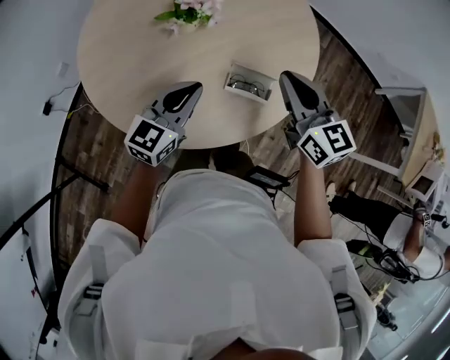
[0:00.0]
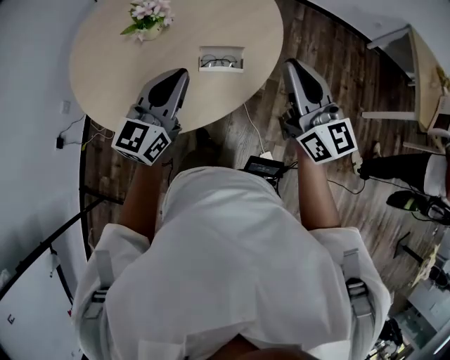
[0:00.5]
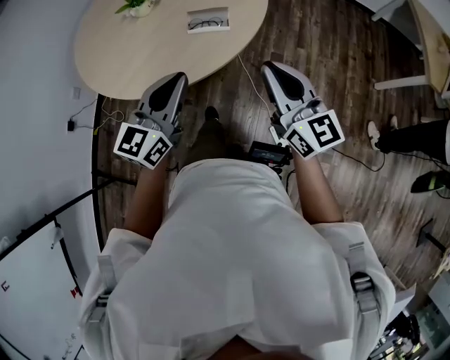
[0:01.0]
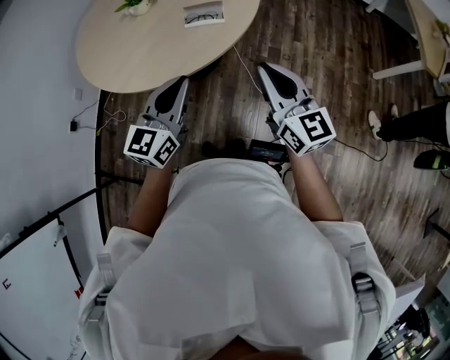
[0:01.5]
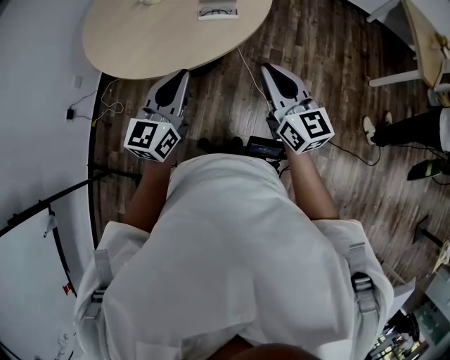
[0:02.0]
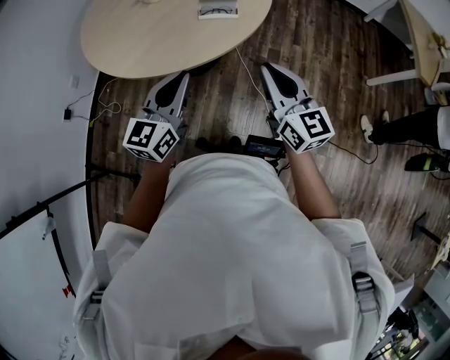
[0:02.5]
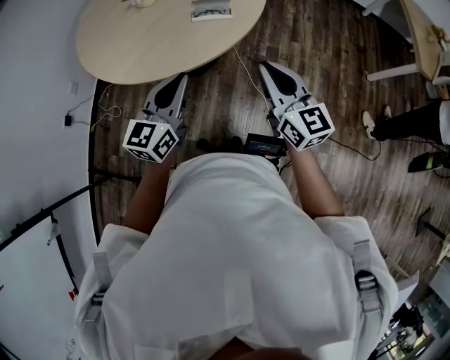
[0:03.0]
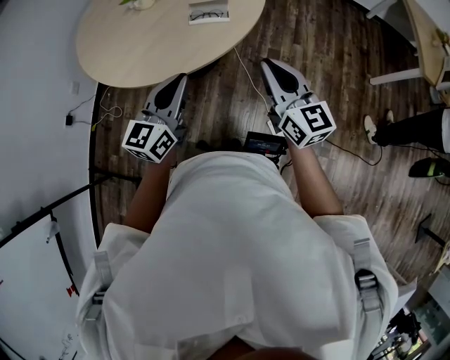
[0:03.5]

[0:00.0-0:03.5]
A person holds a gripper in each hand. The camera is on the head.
0:00.0 to 0:02.0: The two grippers go about 35 cm backward. The right gripper swivels some 20 degrees.
0:02.0 to 0:03.5: The right gripper goes roughly 5 cm to the right; the left gripper ends up about 5 cm from where it was.

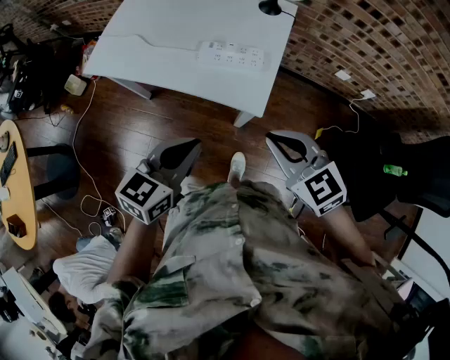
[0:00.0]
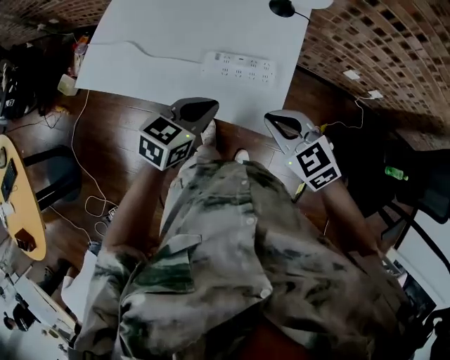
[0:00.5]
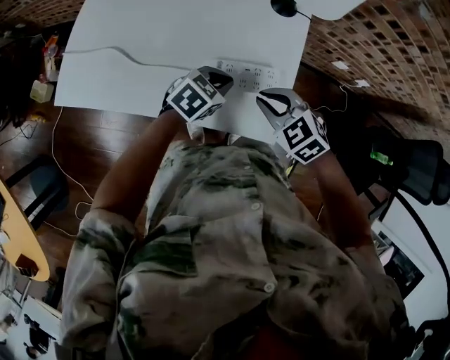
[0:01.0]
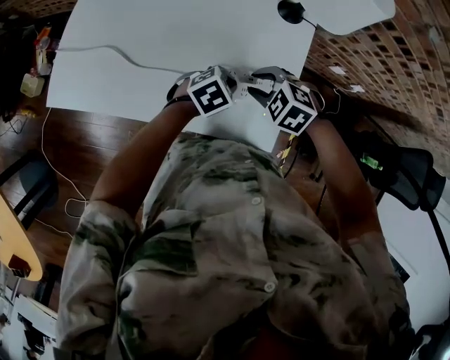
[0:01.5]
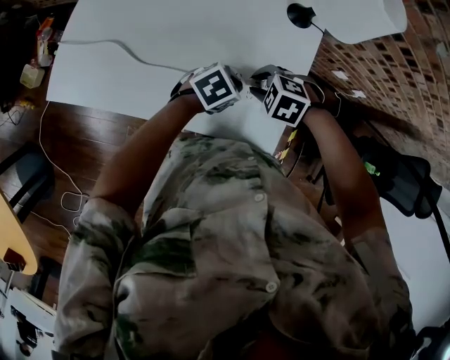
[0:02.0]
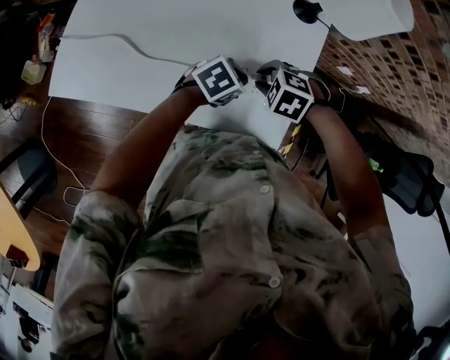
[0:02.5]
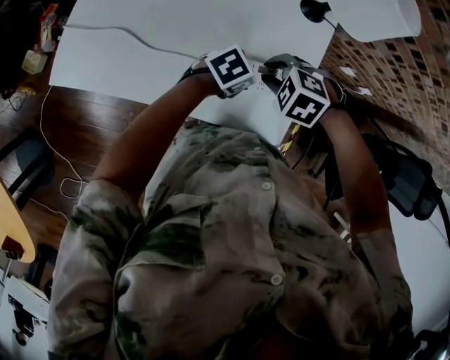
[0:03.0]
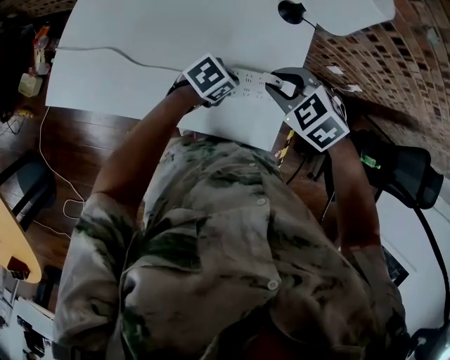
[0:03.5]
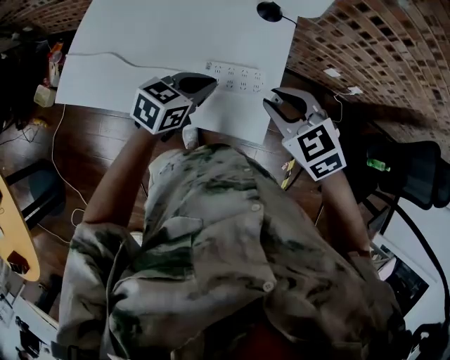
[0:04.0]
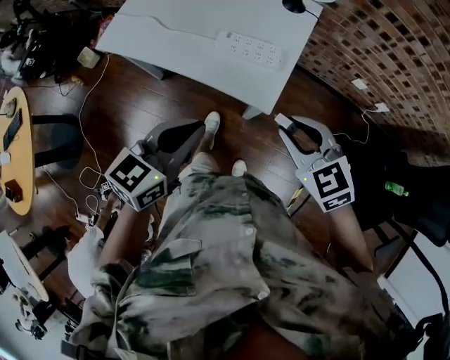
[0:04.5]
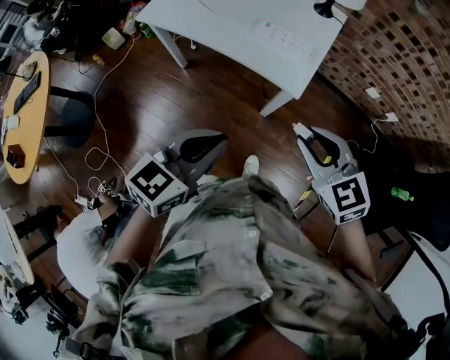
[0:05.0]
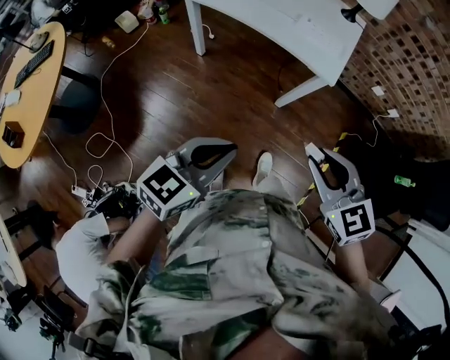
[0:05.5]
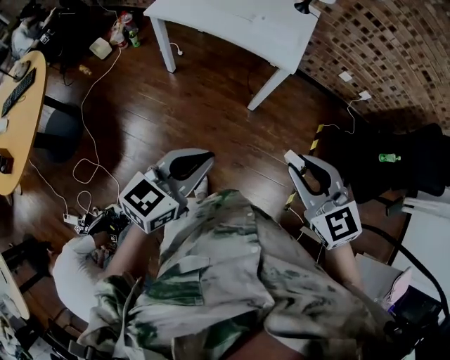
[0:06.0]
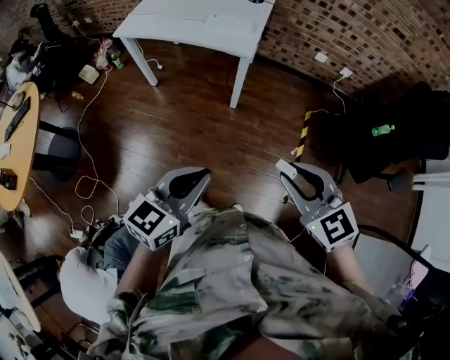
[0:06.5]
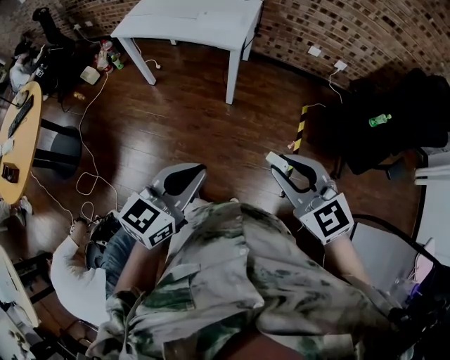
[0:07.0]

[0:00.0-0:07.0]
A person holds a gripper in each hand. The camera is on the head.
0:00.0 to 0:02.0: The left gripper changes place by roughly 40 cm, and swivels about 50 degrees, while the right gripper changes place by approximately 35 cm, angles its fingers downward, by approximately 50 degrees, and opens up.
0:02.0 to 0:03.5: The right gripper shifts about 10 cm upward, and turns by about 20 degrees.
0:03.5 to 0:05.0: The right gripper ends up approximately 40 cm from where it was, and angles its fingers upward, by some 40 degrees; the left gripper moves some 50 cm, and turns by roughly 50 degrees.
0:05.0 to 0:07.0: Both grippers travel together backward, some 40 cm.

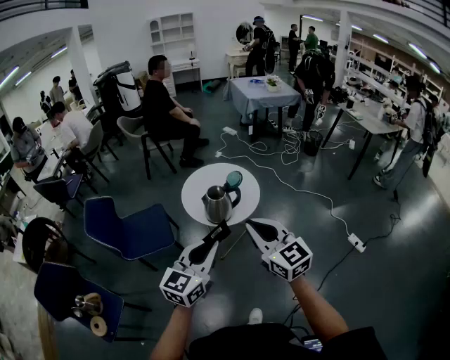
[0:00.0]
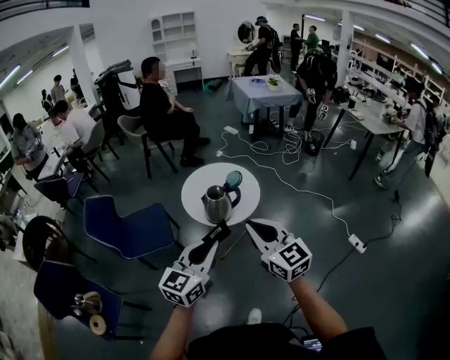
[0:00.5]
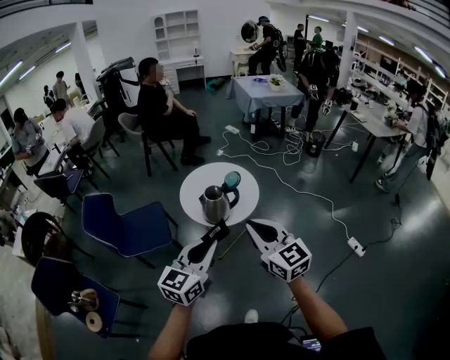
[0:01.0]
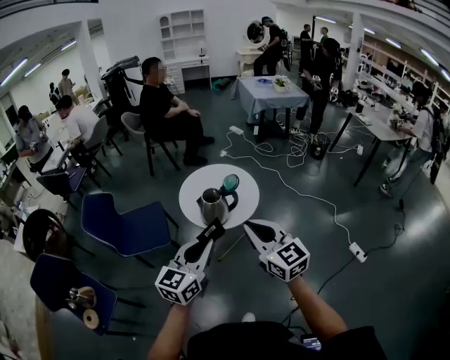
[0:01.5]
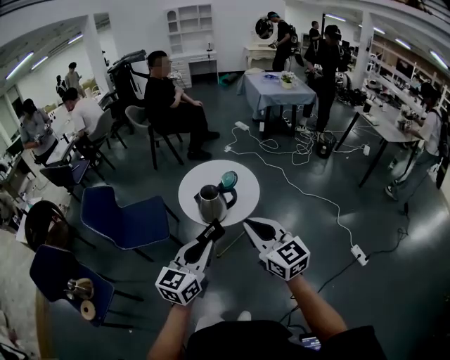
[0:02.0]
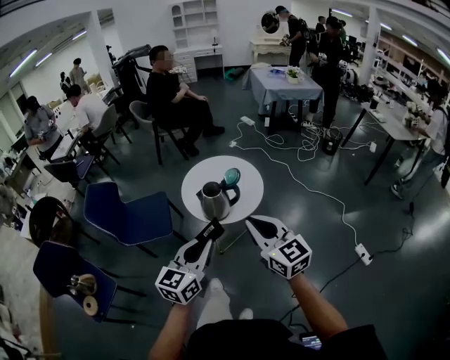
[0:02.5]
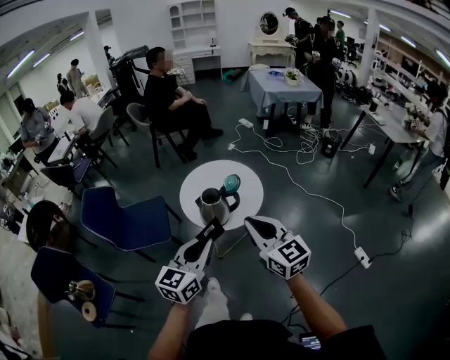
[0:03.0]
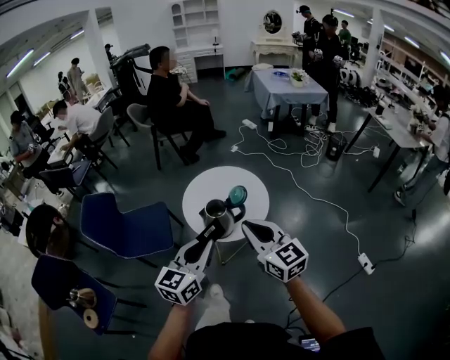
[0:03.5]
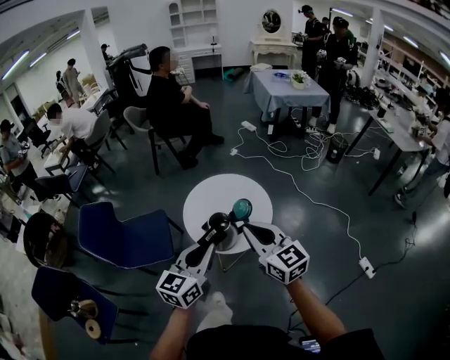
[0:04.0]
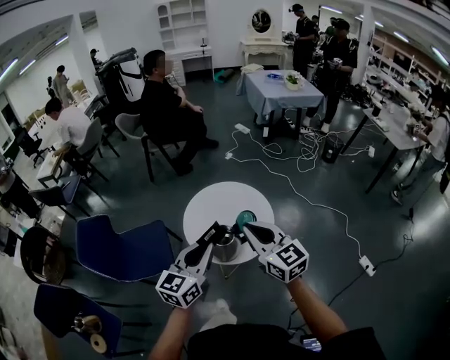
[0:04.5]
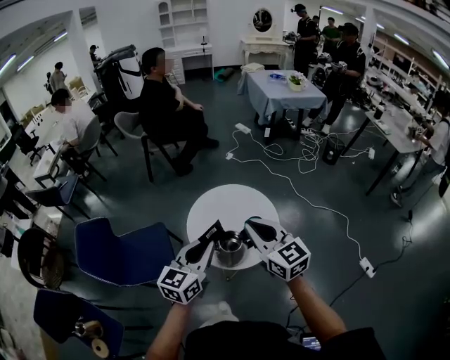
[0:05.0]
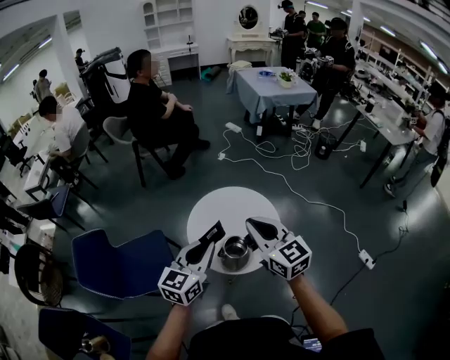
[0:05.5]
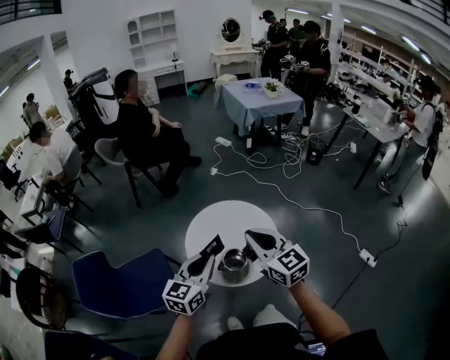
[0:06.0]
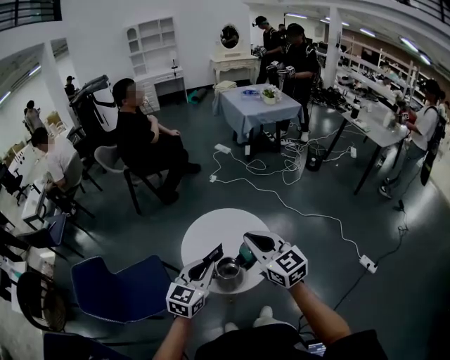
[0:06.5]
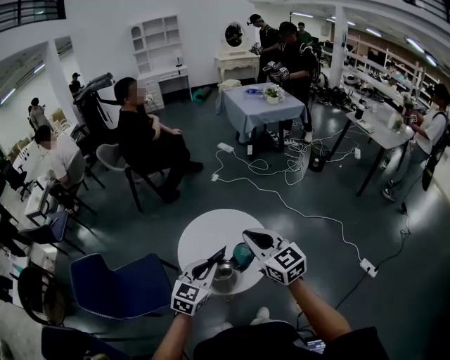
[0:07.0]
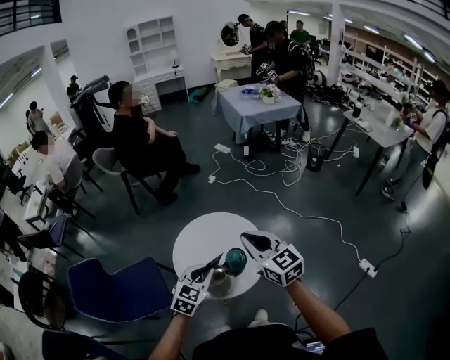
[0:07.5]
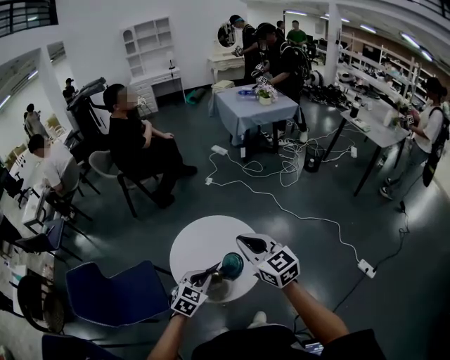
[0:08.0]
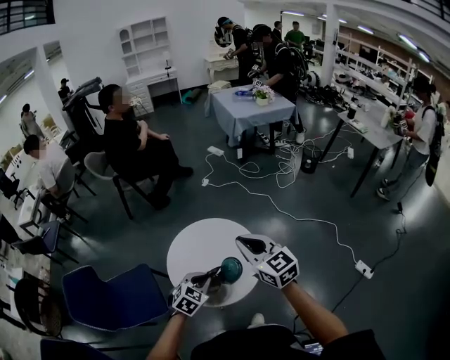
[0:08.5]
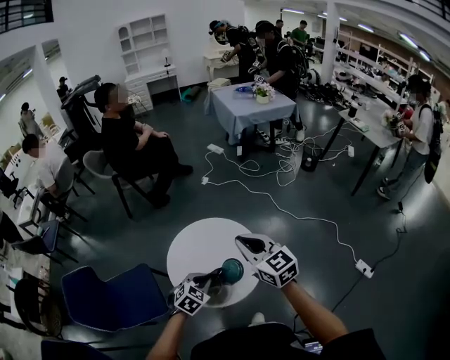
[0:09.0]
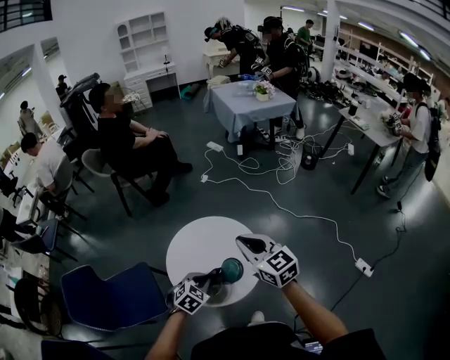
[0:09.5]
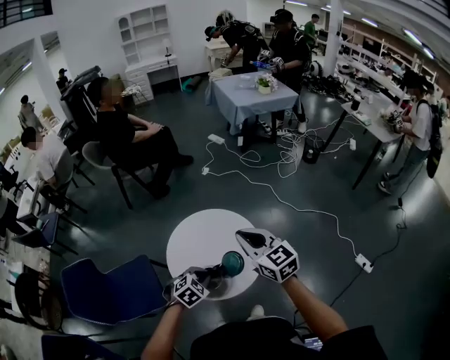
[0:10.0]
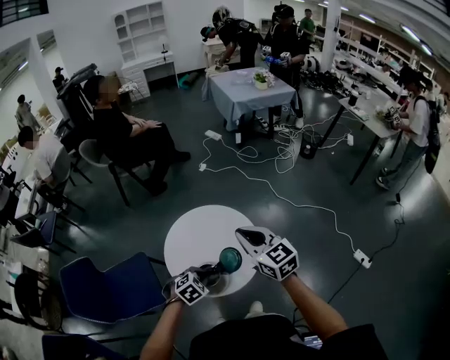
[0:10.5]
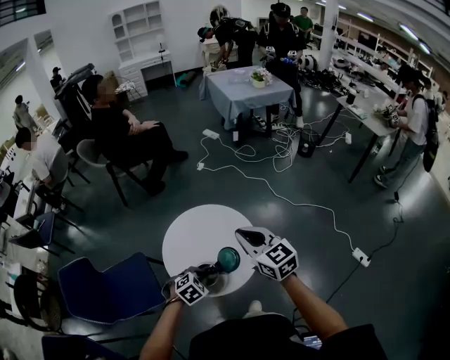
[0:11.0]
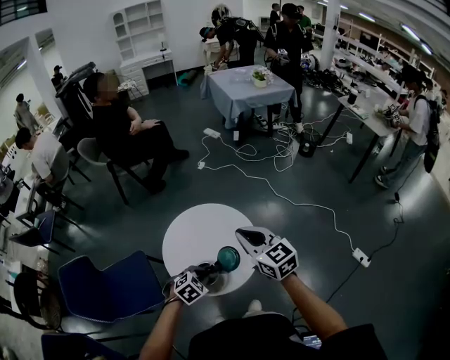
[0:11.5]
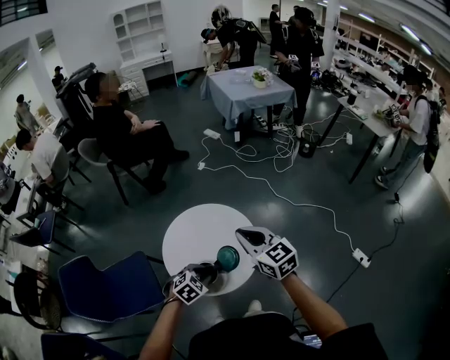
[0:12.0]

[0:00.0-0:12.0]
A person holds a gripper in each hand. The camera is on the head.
0:00.0 to 0:02.0: The two grippers go about 10 cm to the right and forward.
0:02.0 to 0:04.0: Both grippers move forward, roughly 25 cm.
0:04.0 to 0:06.0: Both grippers travel together forward and to the left, approximately 20 cm.
0:06.0 to 0:08.0: The right gripper goes about 15 cm to the right and forward, while the left gripper travels downward and to the right by about 15 cm, and swivels approximately 40 degrees.
0:08.0 to 0:10.0: The right gripper changes place by about 5 cm. The left gripper heads downward, covering about 5 cm, and rotates roughly 20 degrees.
0:10.0 to 0:12.0: The grippers stay close to where they were, moving slightly.

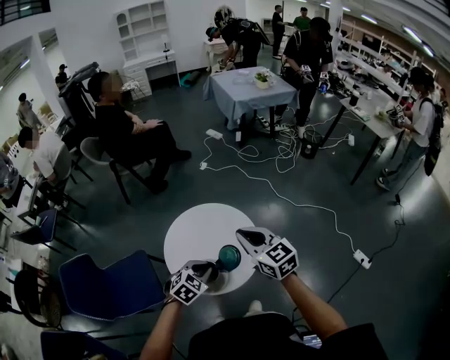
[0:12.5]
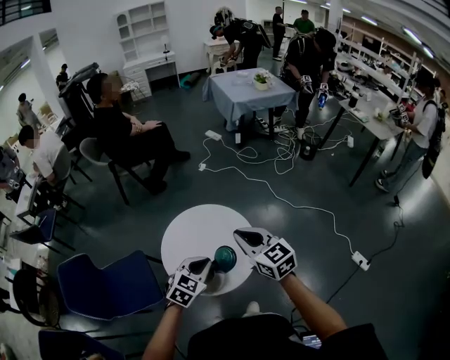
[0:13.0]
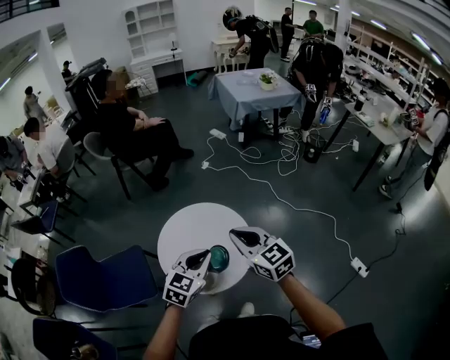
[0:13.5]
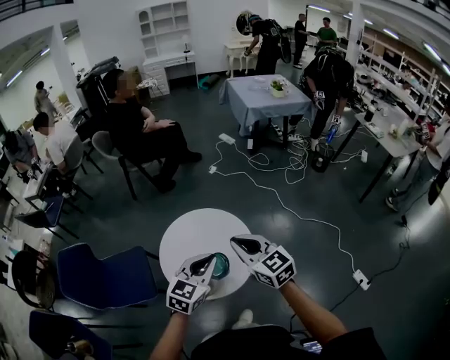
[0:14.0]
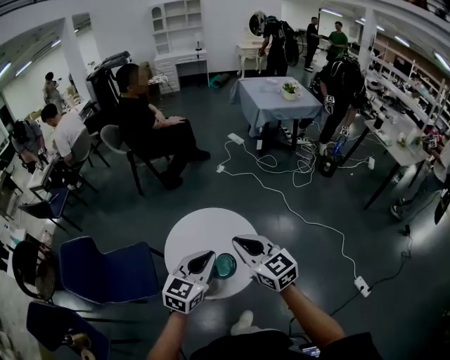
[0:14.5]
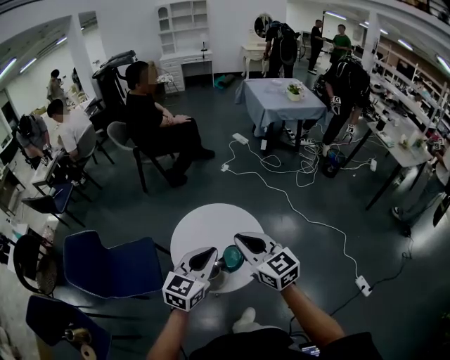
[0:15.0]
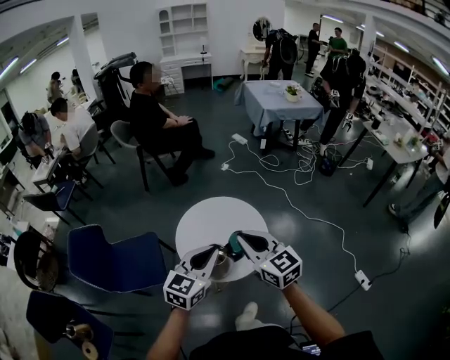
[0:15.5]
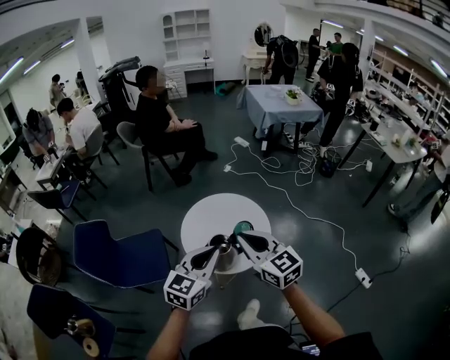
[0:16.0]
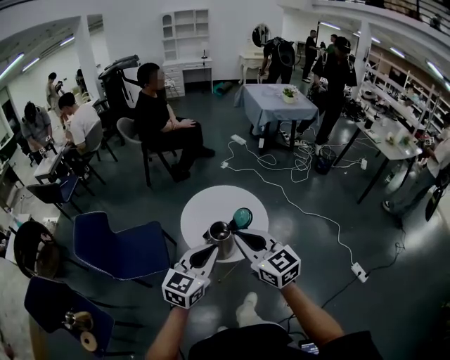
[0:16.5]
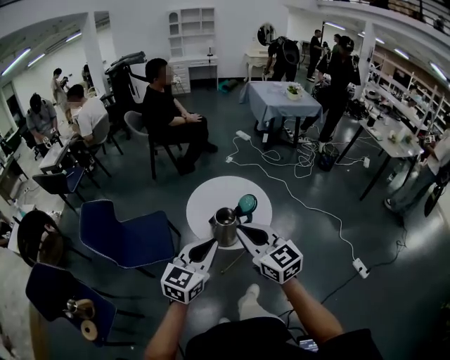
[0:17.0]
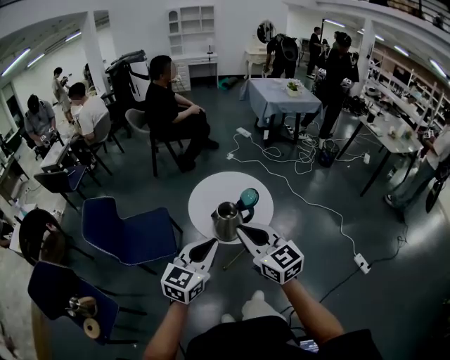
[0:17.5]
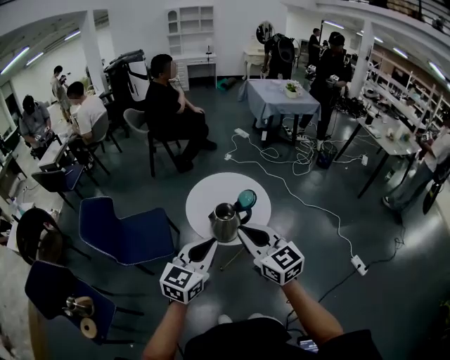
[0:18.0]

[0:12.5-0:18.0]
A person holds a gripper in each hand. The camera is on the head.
0:12.5 to 0:14.5: The left gripper shifts approximately 15 cm upward and to the right, and tilts its fingers roughly 30 degrees upward.
0:14.5 to 0:16.0: Both grippers travel together backward and to the left, about 25 cm.
0:16.0 to 0:18.0: Both grippers move backward, roughly 15 cm.
